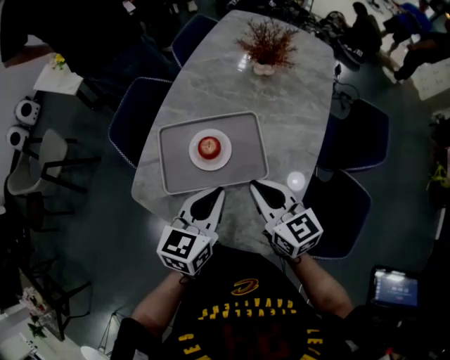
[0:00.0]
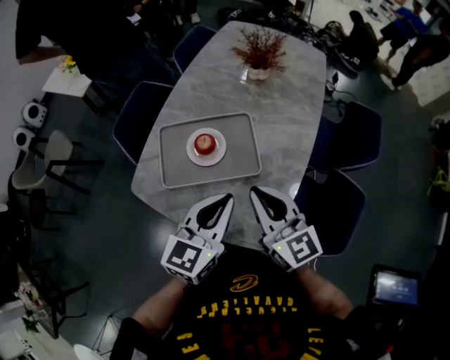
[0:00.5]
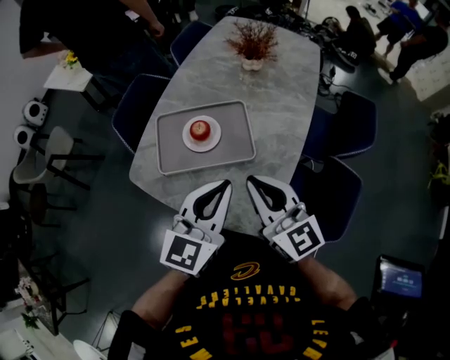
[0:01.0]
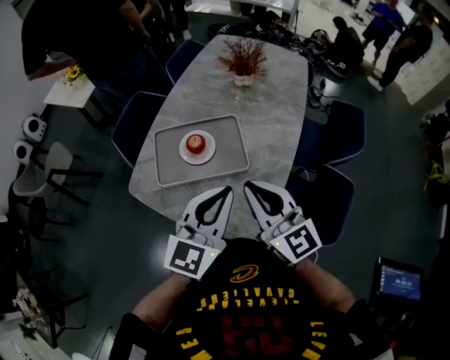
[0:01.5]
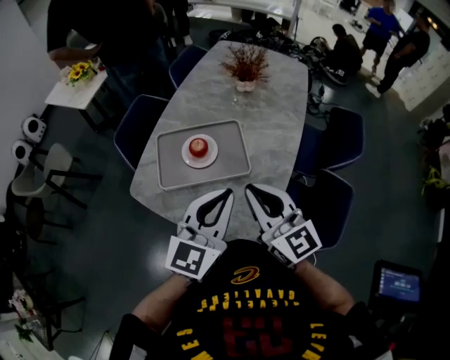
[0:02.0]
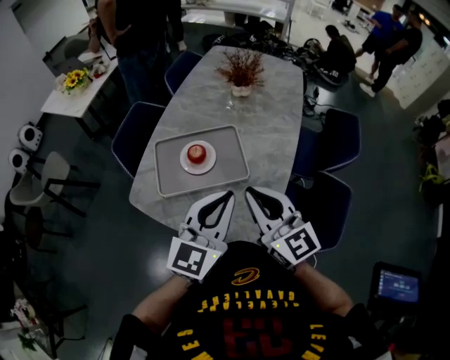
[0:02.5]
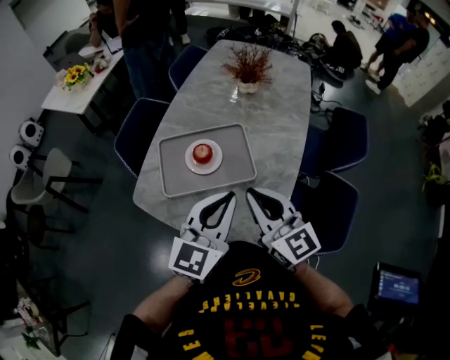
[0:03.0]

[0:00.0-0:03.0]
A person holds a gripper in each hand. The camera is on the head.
0:00.0 to 0:01.5: The left gripper shifts some 15 cm backward, upward and to the right, and turns by roughly 20 degrees, while the right gripper travels upward and backward by about 15 cm, and changes its angle by about 20 degrees.
0:01.5 to 0:03.0: There are only small adjustments of the grippers.

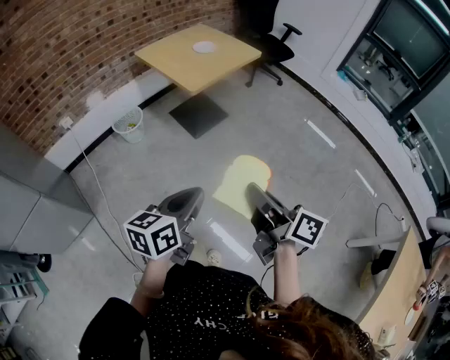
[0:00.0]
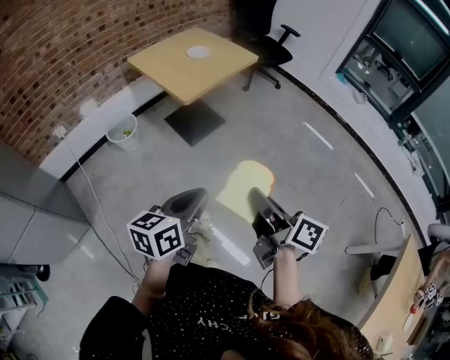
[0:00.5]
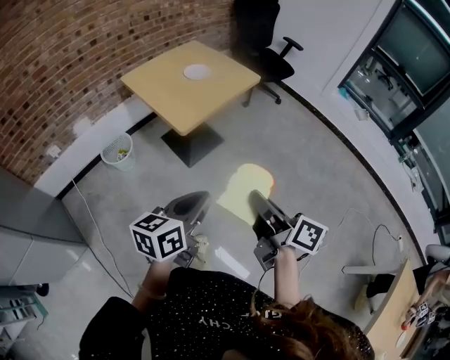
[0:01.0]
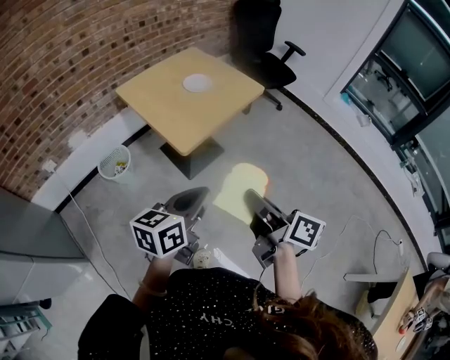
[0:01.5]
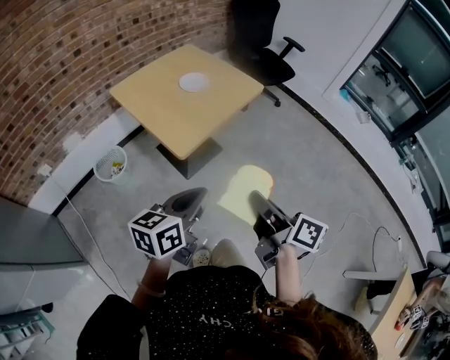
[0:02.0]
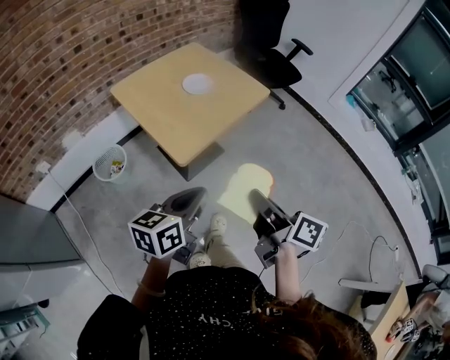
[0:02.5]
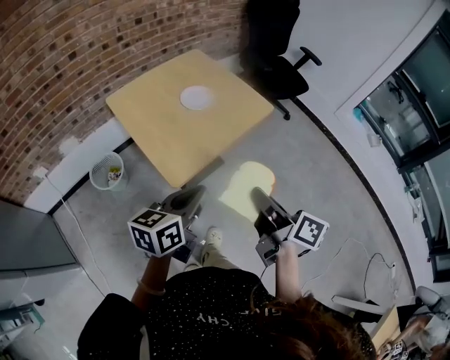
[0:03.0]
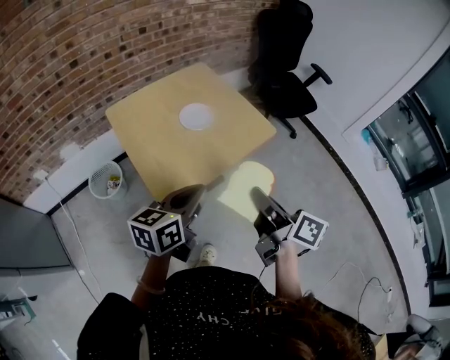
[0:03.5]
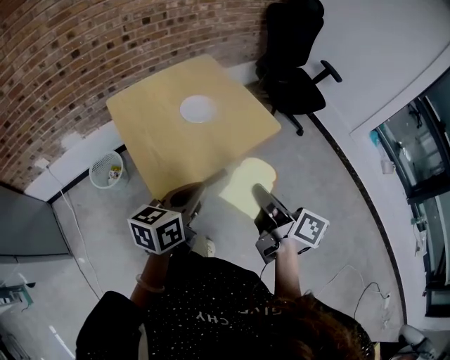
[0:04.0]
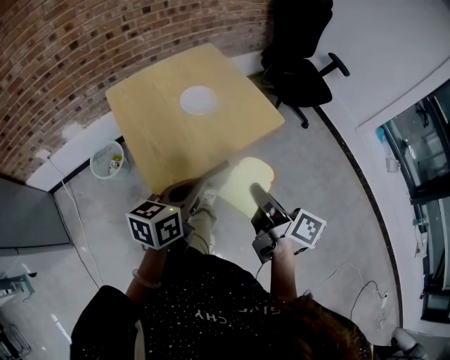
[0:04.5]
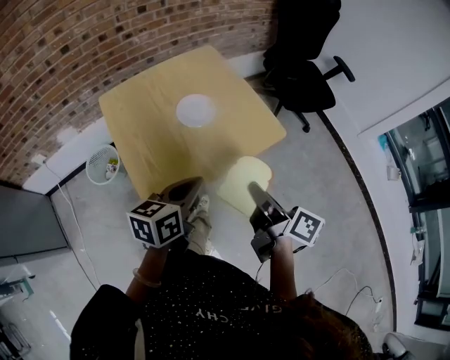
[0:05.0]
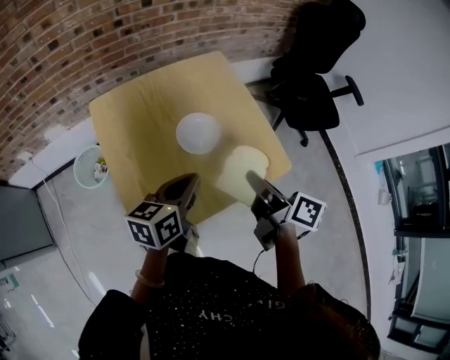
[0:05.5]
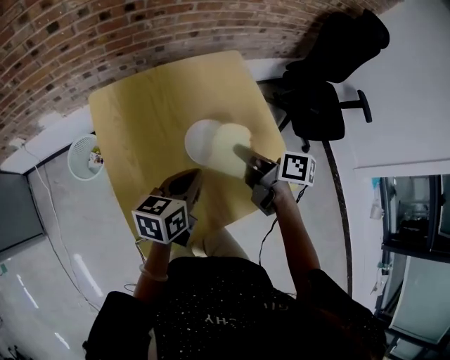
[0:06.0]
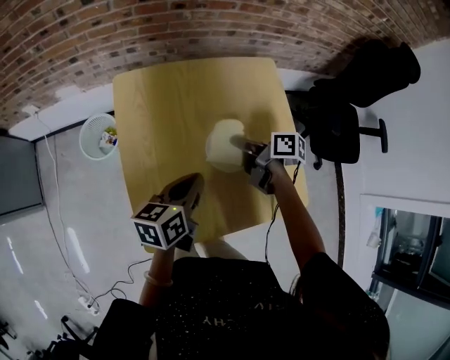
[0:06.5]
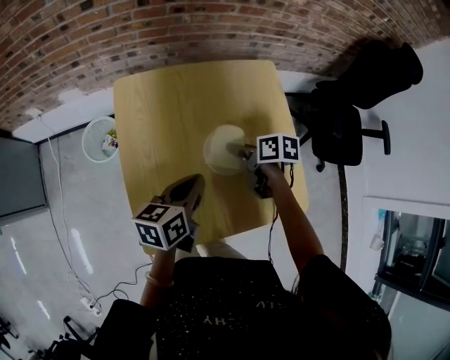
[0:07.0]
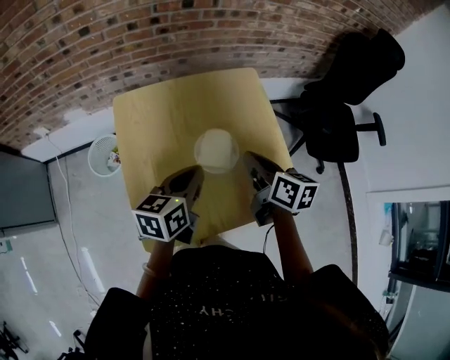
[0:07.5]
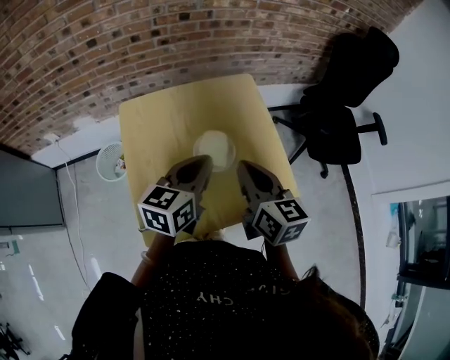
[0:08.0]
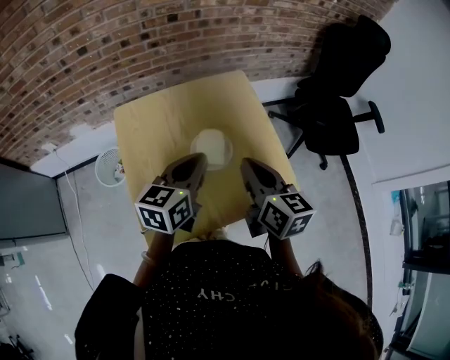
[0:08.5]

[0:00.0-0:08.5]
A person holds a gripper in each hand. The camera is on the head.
0:00.0 to 0:02.0: The two grippers go roughly 35 cm forward.
0:02.0 to 0:04.0: Both grippers travel together forward, roughly 25 cm.
0:04.0 to 0:06.5: The right gripper moves some 50 cm, and swivels about 50 degrees, while the left gripper shifts by about 30 cm, and changes its angle by roughly 30 degrees.
0:06.5 to 0:08.5: The right gripper travels upward and backward by approximately 25 cm, changes its angle by about 50 degrees, and opens, then closes again; the left gripper shifts about 15 cm upward and to the right, and swivels about 20 degrees.

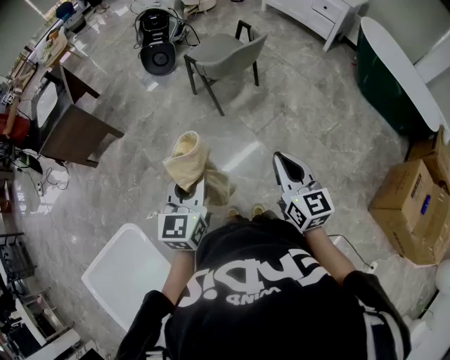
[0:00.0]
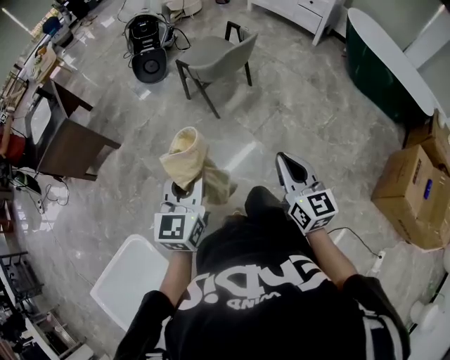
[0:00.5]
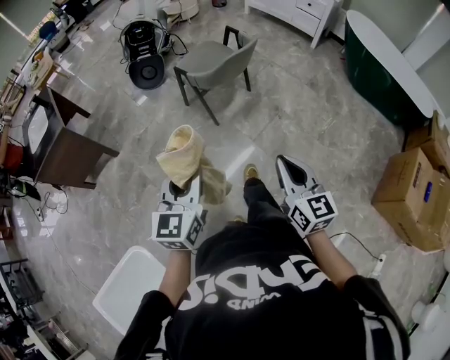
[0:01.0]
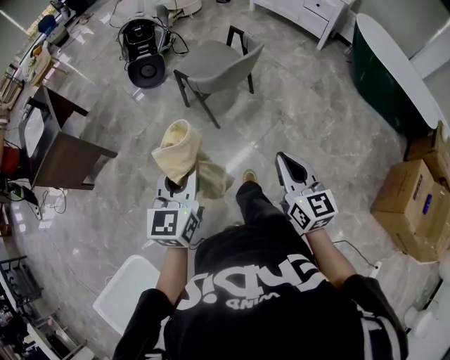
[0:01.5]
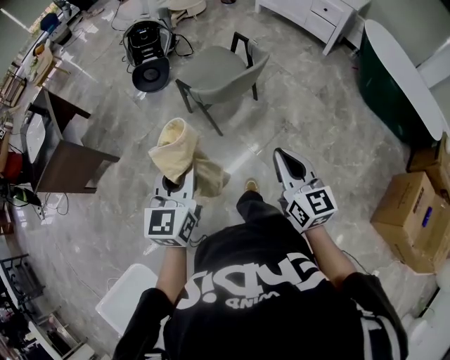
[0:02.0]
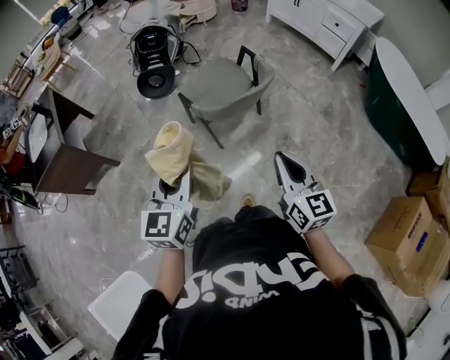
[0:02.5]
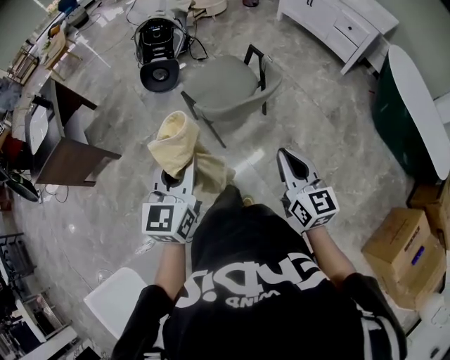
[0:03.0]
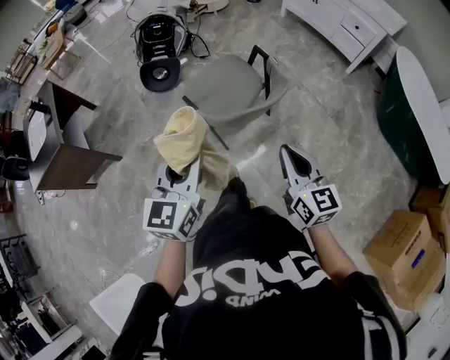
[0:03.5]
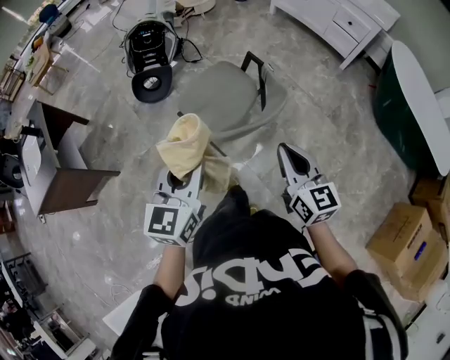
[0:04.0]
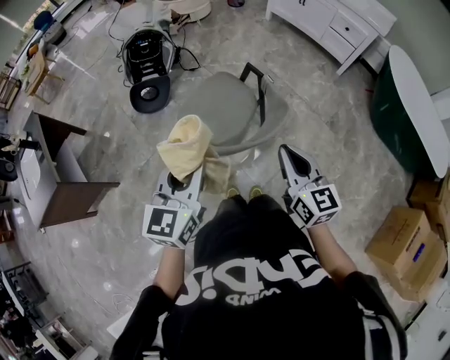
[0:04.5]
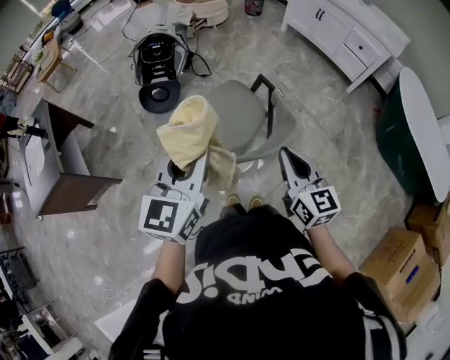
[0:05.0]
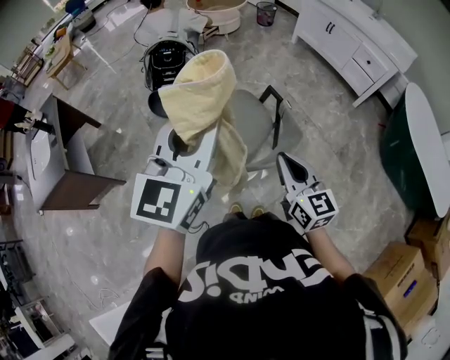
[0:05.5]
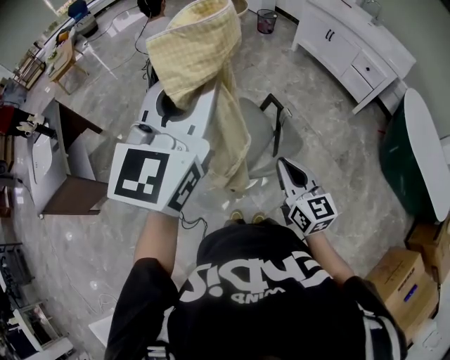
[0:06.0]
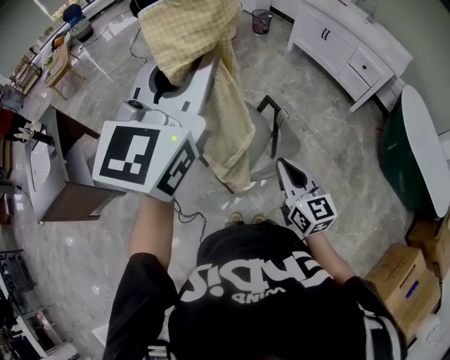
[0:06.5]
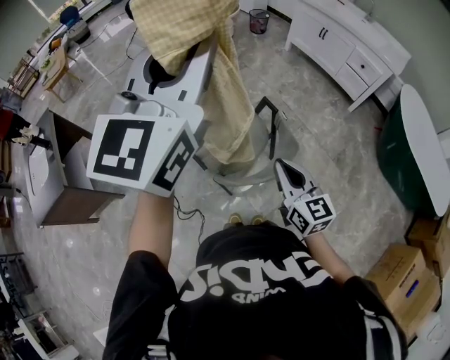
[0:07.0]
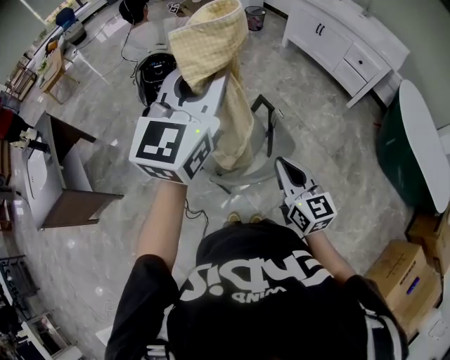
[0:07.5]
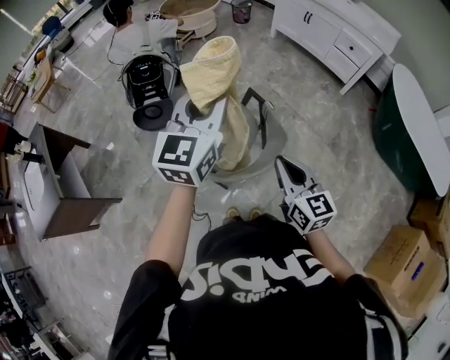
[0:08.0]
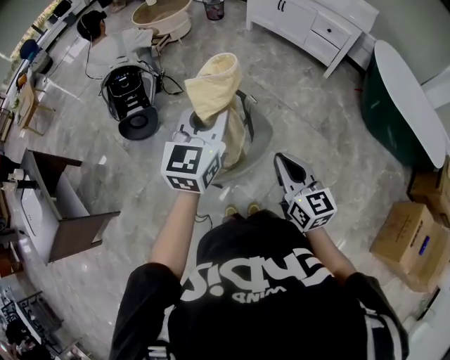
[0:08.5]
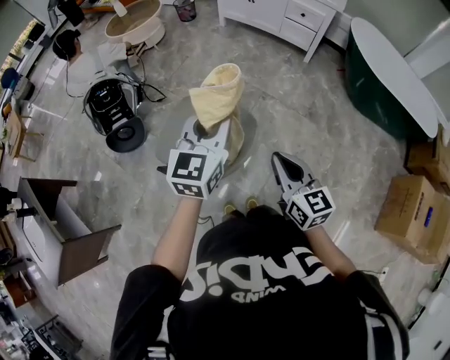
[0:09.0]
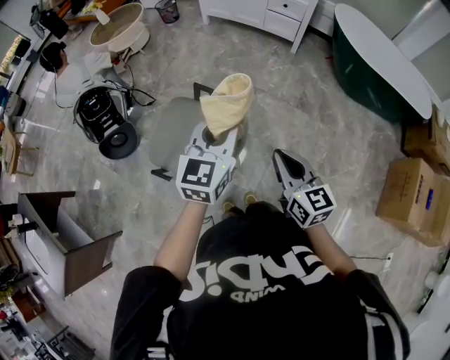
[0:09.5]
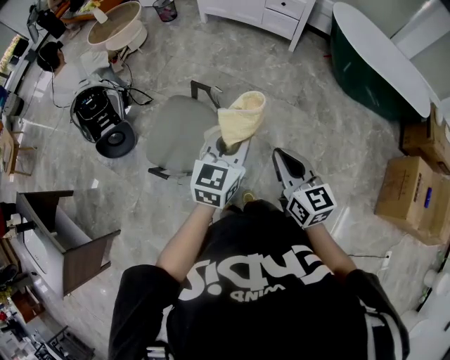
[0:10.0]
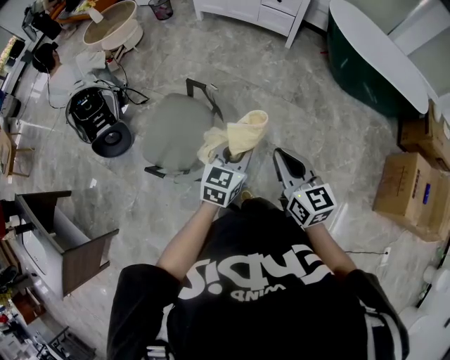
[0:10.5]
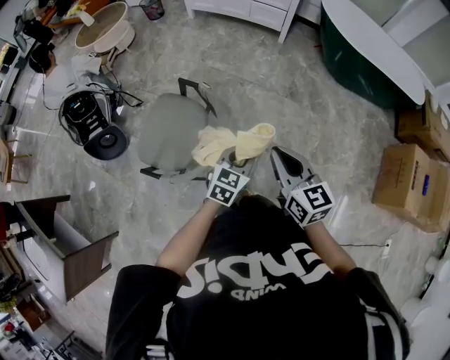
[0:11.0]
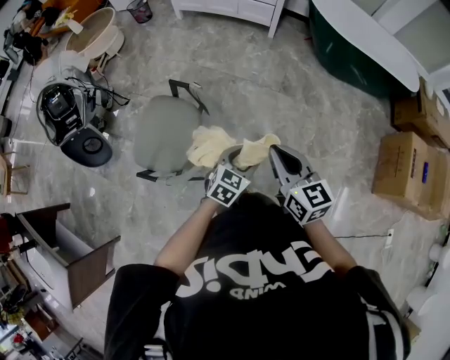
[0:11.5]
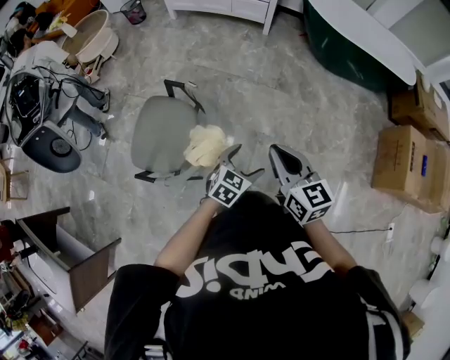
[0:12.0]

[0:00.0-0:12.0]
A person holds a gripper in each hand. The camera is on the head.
0:00.0 to 0:02.0: Both grippers move forward, about 25 cm.
0:02.0 to 0:04.0: Both grippers move forward, some 25 cm.
0:04.0 to 0:06.0: The right gripper travels forward by about 10 cm. Meanwhile the left gripper is displaced upward and forward by approximately 30 cm, and swivels approximately 20 degrees.
0:06.0 to 0:08.0: The right gripper goes roughly 5 cm to the right; the left gripper is displaced downward, forward and to the right by about 20 cm.
0:08.0 to 0:10.0: The right gripper is displaced to the right by roughly 10 cm. Meanwhile the left gripper goes roughly 25 cm to the right and downward, and rotates some 30 degrees.
0:10.0 to 0:12.0: The right gripper shifts approximately 5 cm to the right, while the left gripper is displaced downward and to the right by roughly 25 cm, swivels some 40 degrees, and opens its fingers.

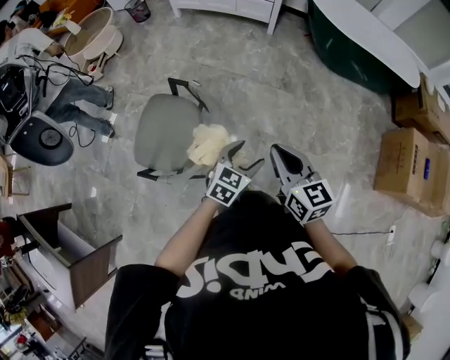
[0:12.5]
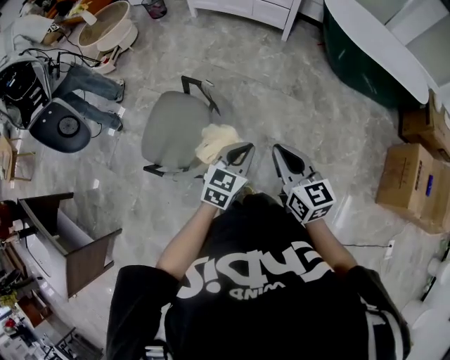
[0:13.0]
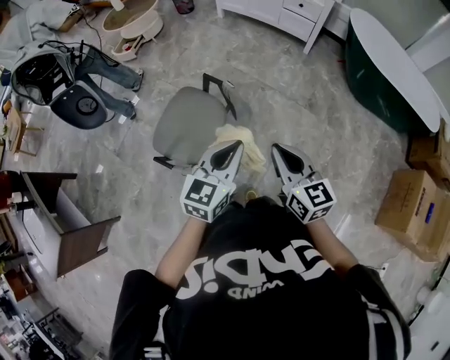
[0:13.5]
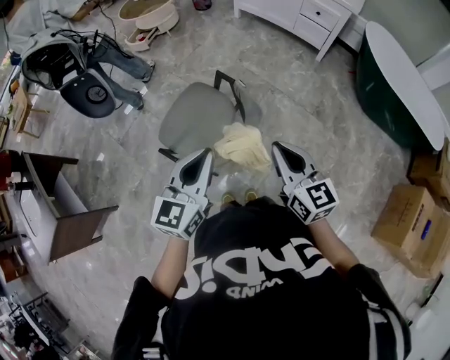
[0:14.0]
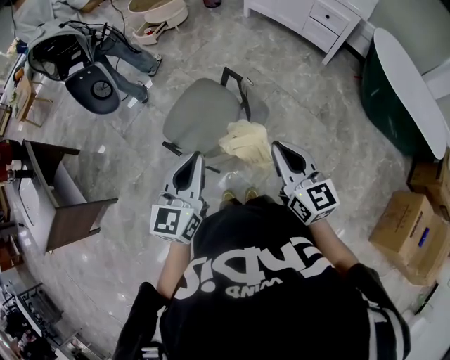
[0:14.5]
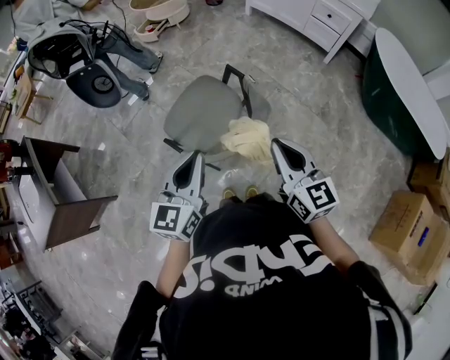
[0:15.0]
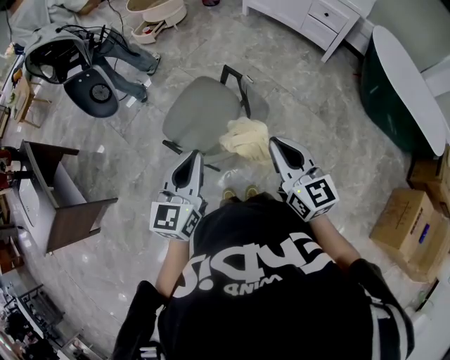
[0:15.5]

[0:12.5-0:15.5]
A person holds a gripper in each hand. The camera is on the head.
0:12.5 to 0:14.0: The left gripper shifts by roughly 30 cm, swivels some 40 degrees, and closes up, while the right gripper moves about 10 cm, and changes its angle by some 20 degrees.
0:14.0 to 0:15.5: The left gripper is displaced to the left by approximately 5 cm.
